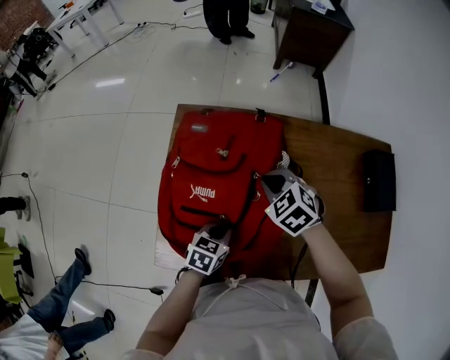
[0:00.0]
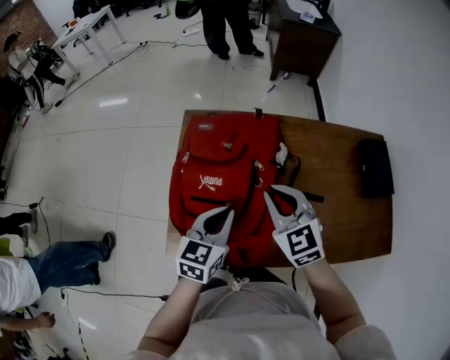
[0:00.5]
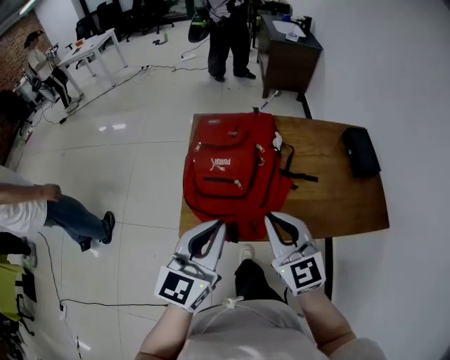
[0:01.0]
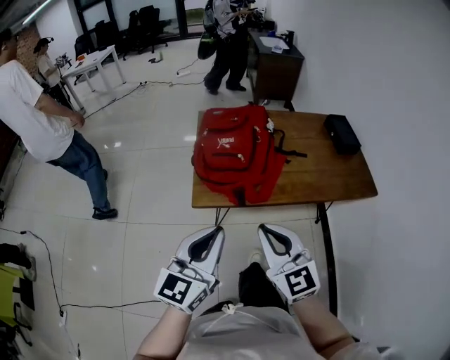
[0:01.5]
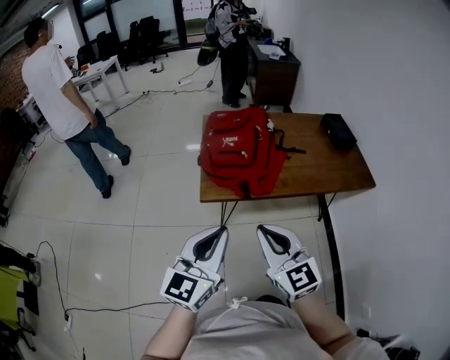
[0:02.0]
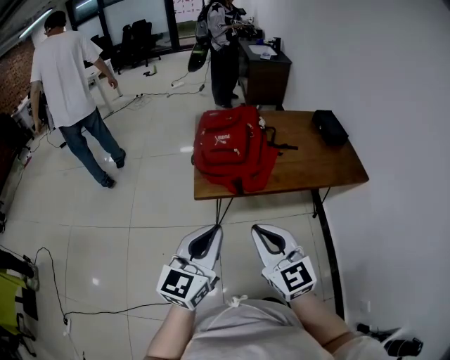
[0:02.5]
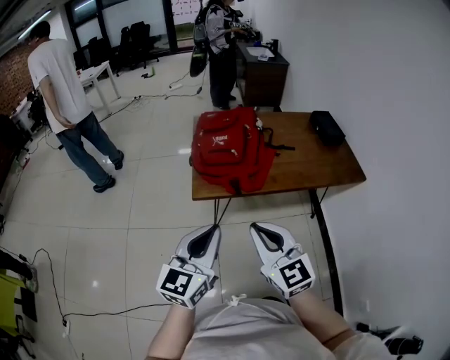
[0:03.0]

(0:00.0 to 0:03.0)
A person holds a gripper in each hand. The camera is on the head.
0:00.0 - 0:01.5: Both grippers travel together backward and upward, approximately 50 cm. The right gripper tilts its fingers approximately 50 degrees upward. The left gripper tips its fingers upward by some 50 degrees.
0:01.5 - 0:03.0: The grippers both shift backward by approximately 10 cm.

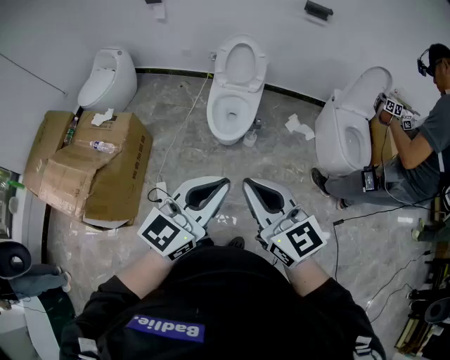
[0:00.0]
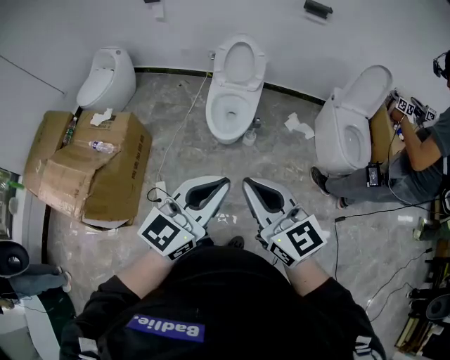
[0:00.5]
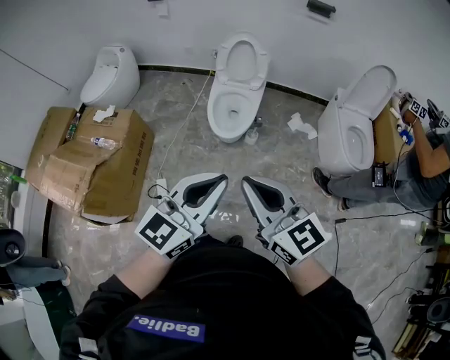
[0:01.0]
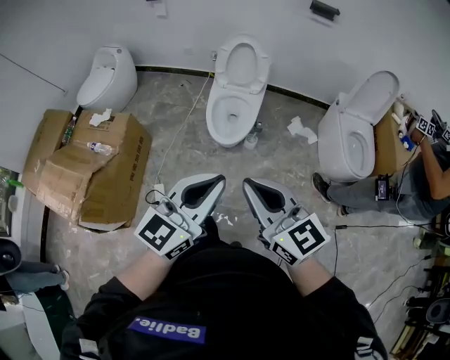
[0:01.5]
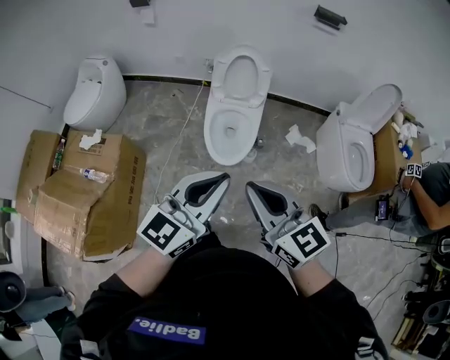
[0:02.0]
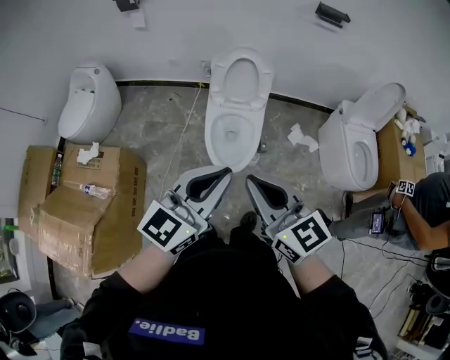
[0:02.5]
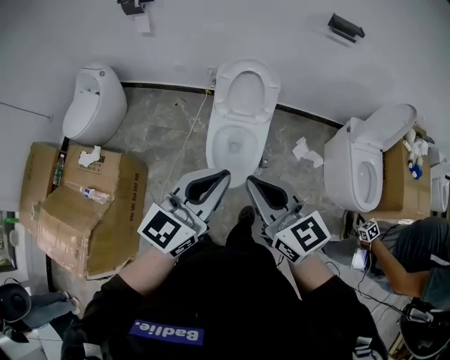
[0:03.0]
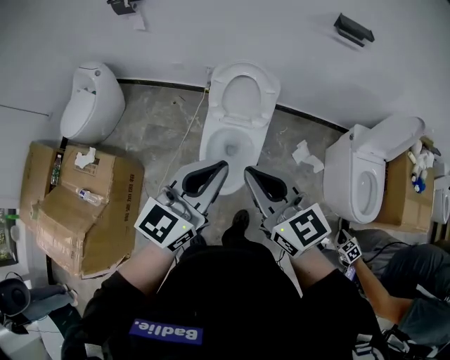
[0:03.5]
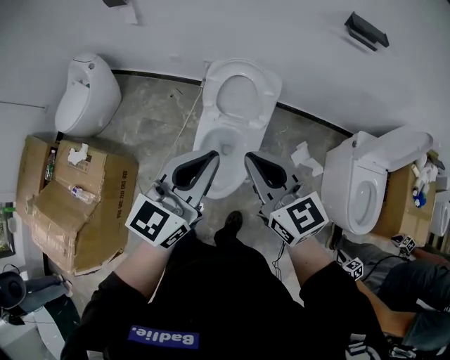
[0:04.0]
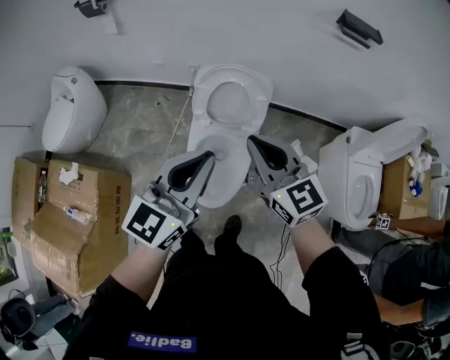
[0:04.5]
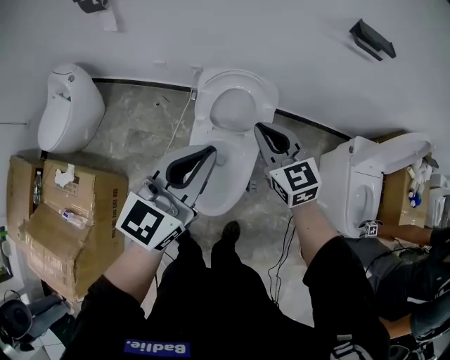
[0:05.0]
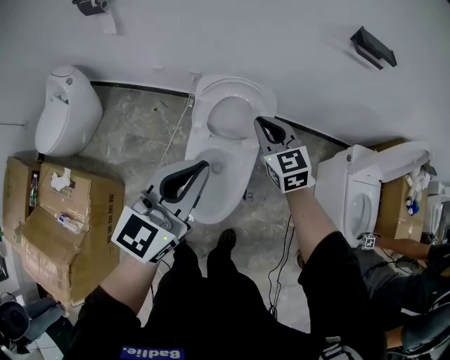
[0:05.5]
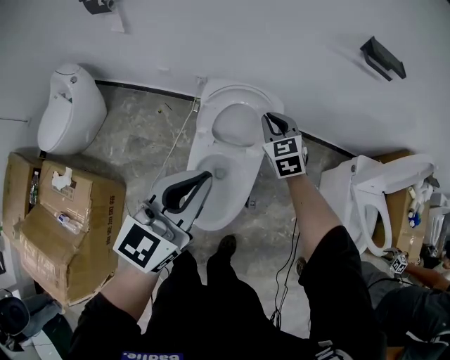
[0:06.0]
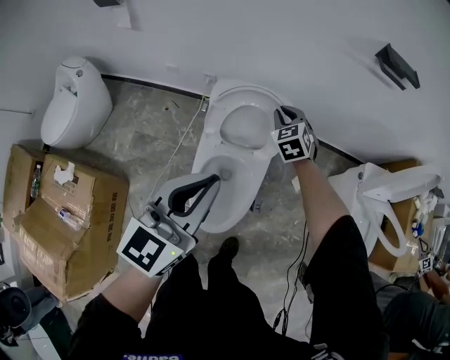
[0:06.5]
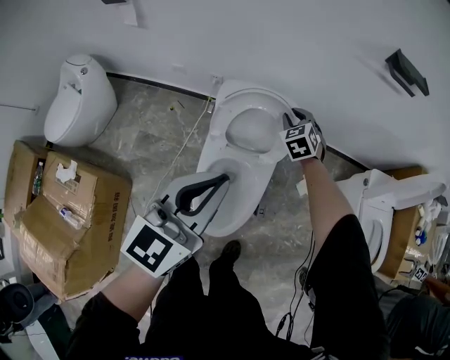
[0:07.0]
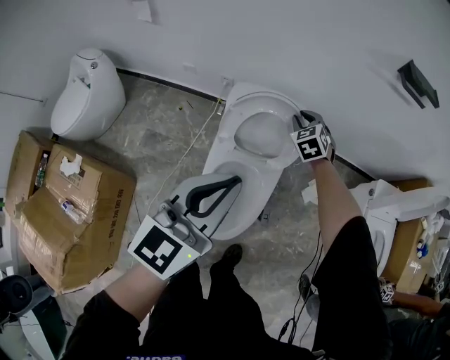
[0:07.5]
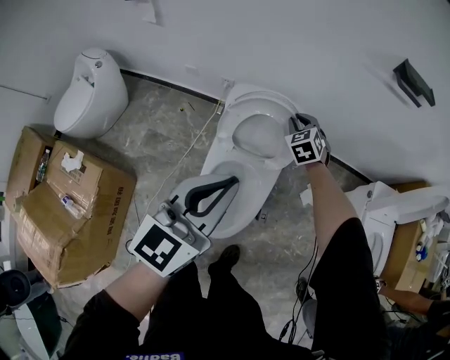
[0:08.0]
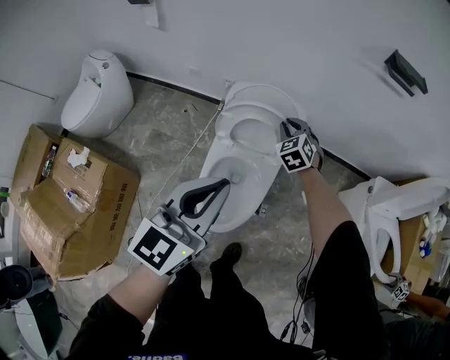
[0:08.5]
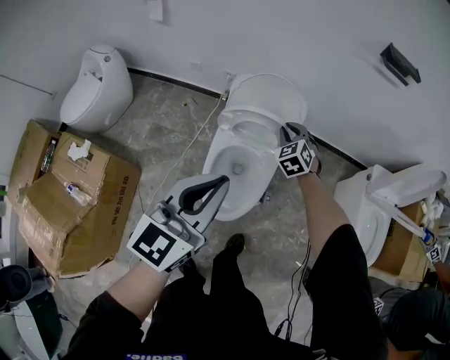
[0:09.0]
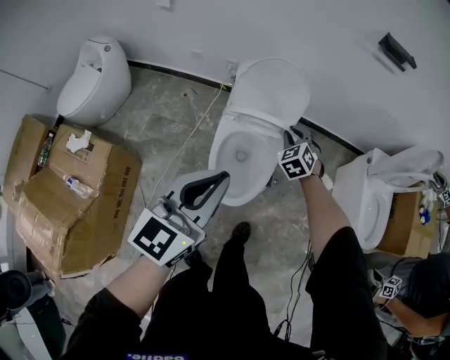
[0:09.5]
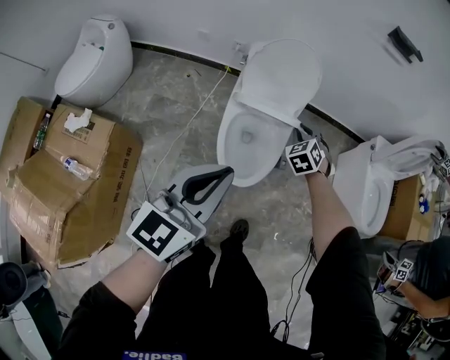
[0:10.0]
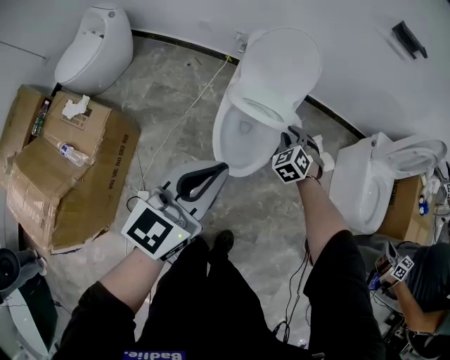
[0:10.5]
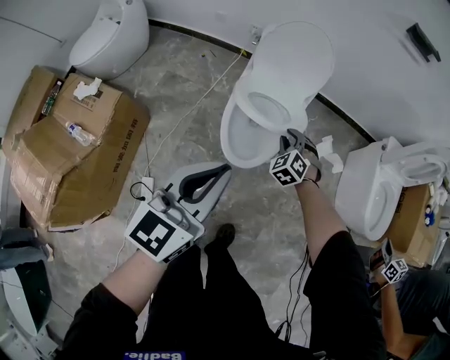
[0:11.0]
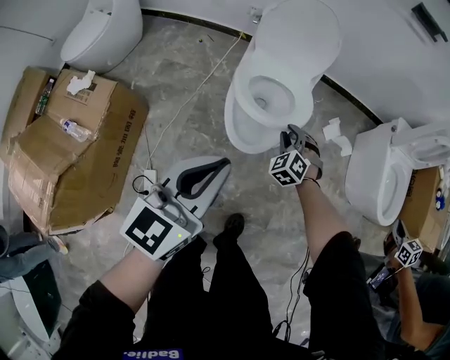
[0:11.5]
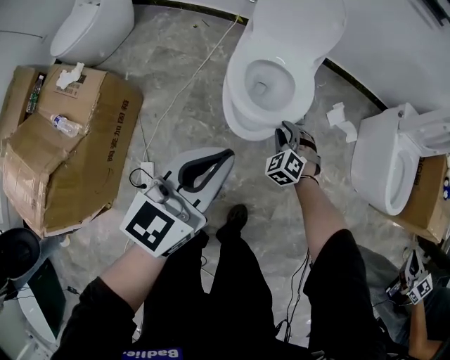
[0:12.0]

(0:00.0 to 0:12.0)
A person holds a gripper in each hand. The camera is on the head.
0:00.0 - 0:02.0: The grippers both shift forward by some 20 cm.
0:02.0 - 0:04.0: The two grippers go some 35 cm forward.
0:04.0 - 0:06.0: The left gripper heads forward, covering roughly 10 cm, while the right gripper moves forward and downward, approximately 35 cm, and turns by approximately 30 degrees.
0:06.0 - 0:08.0: The right gripper travels downward and forward by about 10 cm.
0:08.0 - 0:10.0: Both grippers travel together backward, roughly 25 cm.
0:10.0 - 0:12.0: The right gripper moves downward and backward, some 25 cm; the left gripper moves downward, backward and to the right, roughly 15 cm.

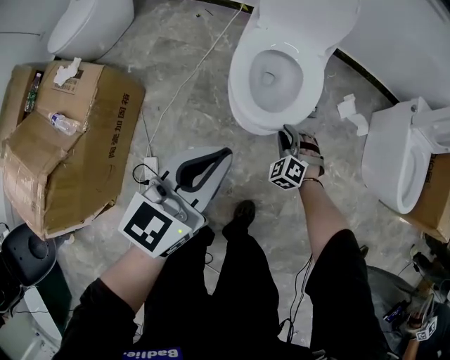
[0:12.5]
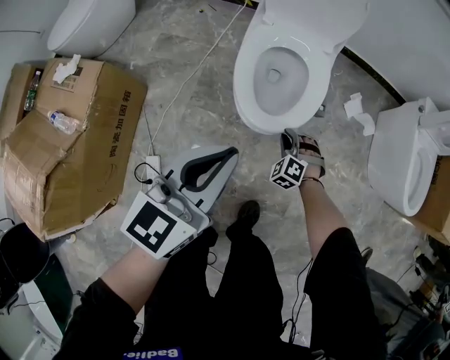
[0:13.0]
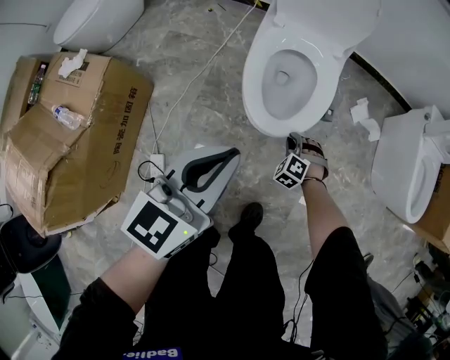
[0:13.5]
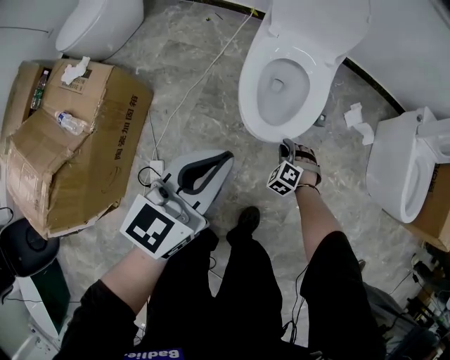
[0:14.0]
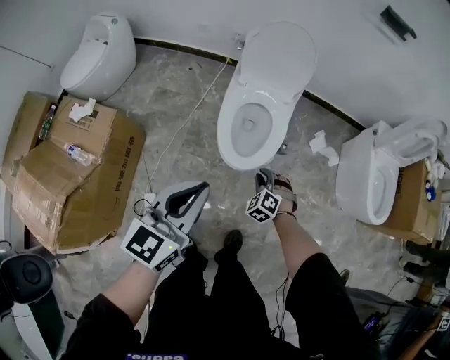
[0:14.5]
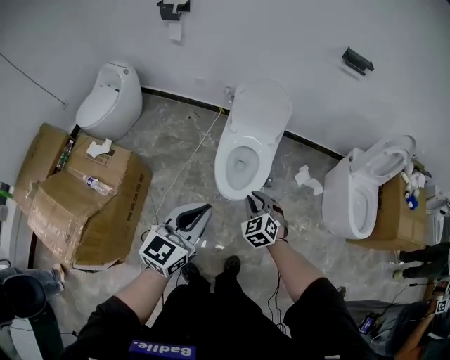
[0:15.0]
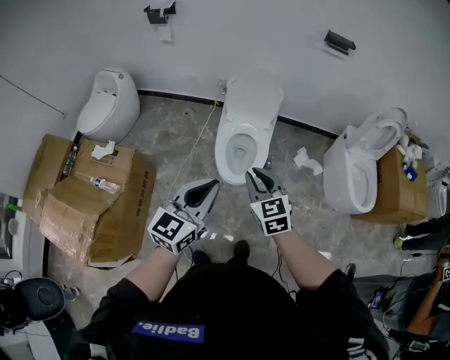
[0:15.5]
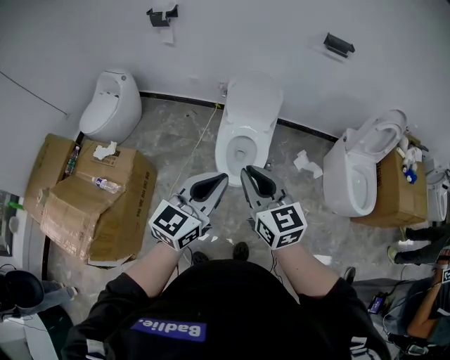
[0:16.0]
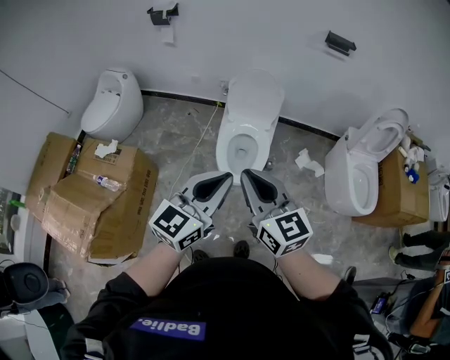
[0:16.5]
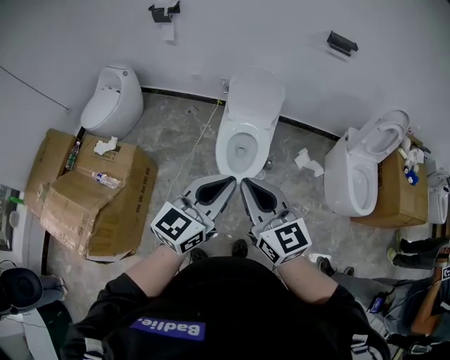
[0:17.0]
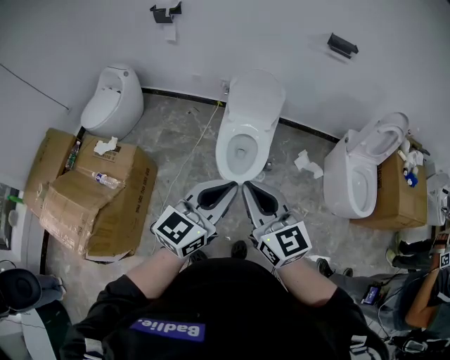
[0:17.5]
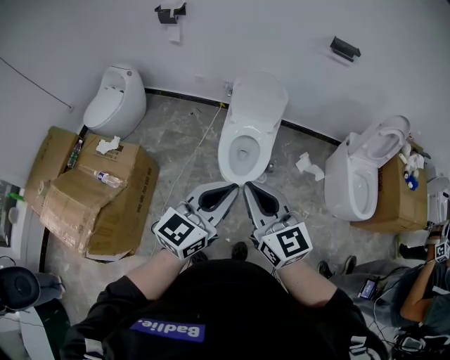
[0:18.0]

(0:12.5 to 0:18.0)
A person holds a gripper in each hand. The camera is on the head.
0:12.5 - 0:14.5: The left gripper moves upward, some 10 cm, while the right gripper heads upward and backward, covering some 10 cm.
0:14.5 - 0:16.0: The right gripper shifts roughly 50 cm upward, and tips its fingers upward by about 40 degrees. The left gripper travels upward by roughly 20 cm.
0:16.0 - 0:18.0: The right gripper heads backward, covering roughly 5 cm.

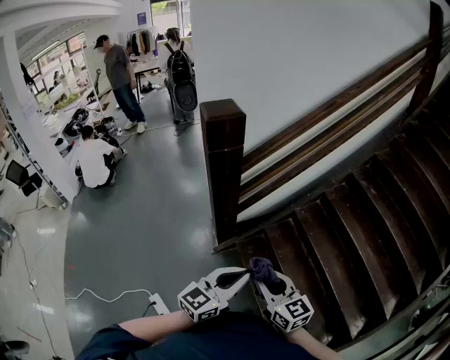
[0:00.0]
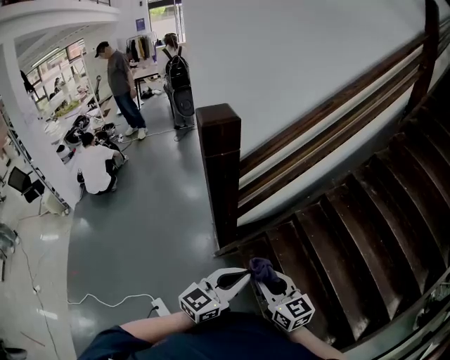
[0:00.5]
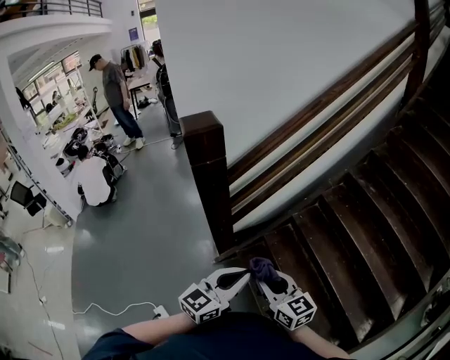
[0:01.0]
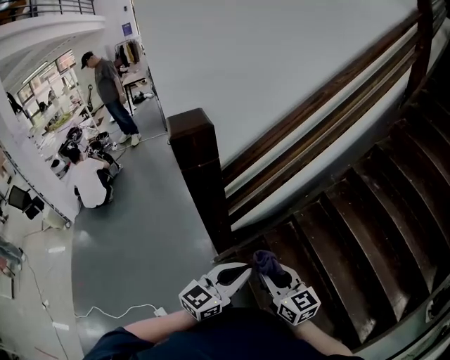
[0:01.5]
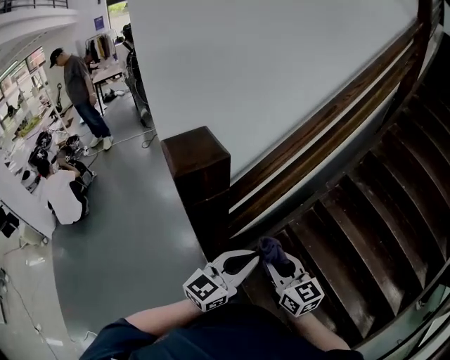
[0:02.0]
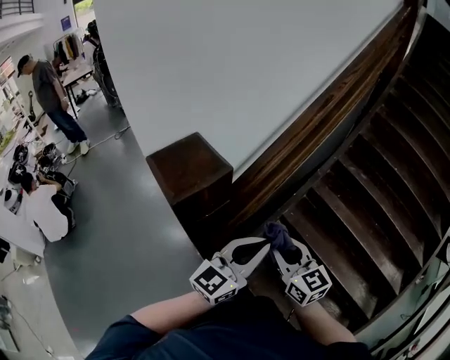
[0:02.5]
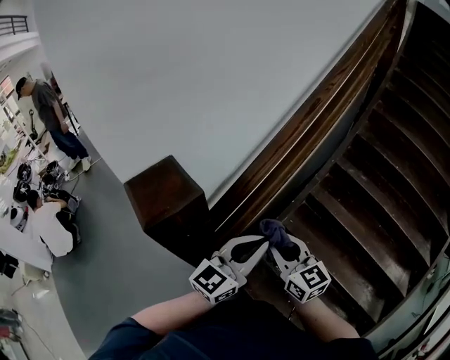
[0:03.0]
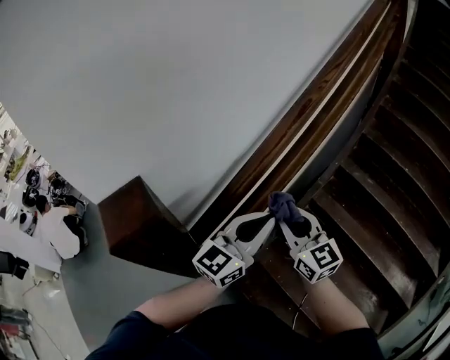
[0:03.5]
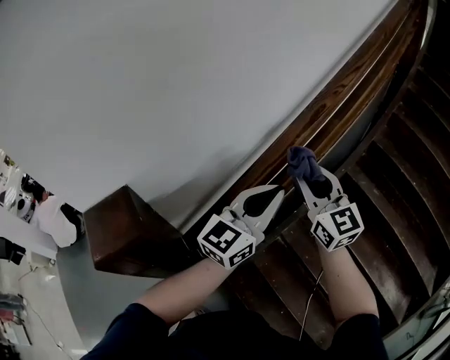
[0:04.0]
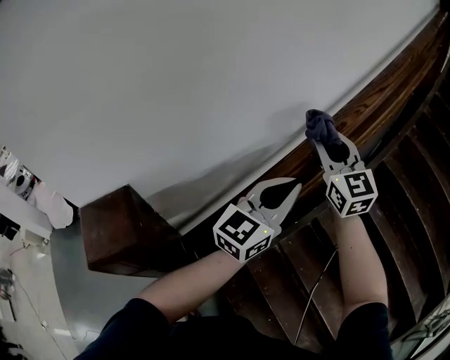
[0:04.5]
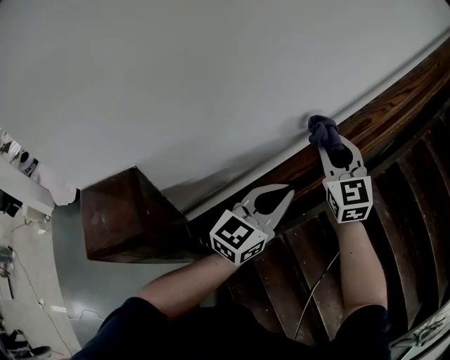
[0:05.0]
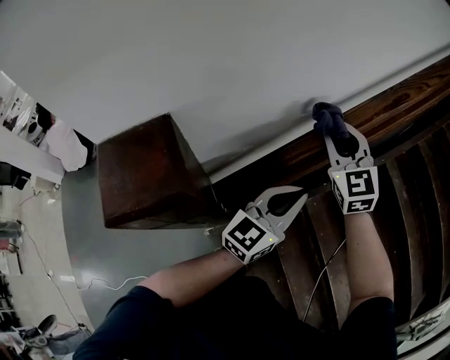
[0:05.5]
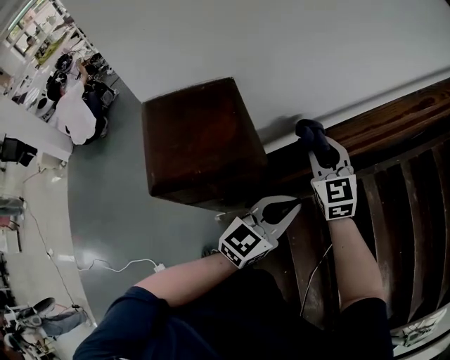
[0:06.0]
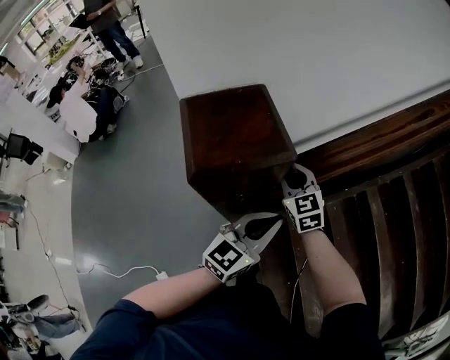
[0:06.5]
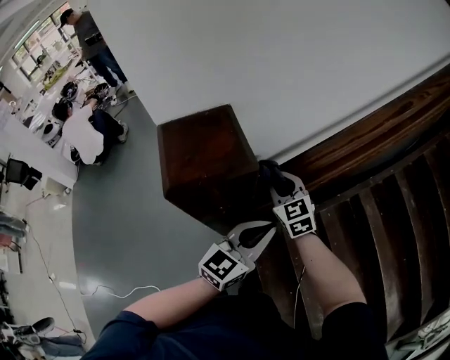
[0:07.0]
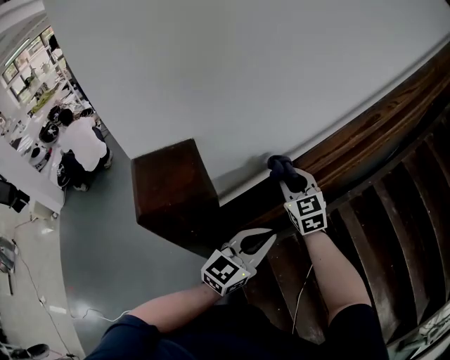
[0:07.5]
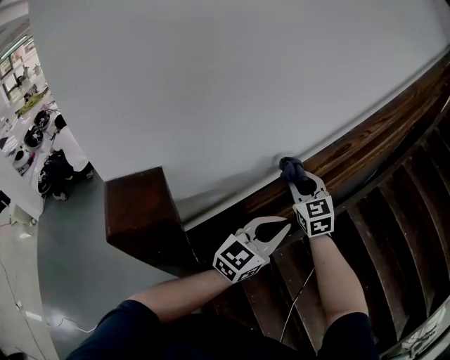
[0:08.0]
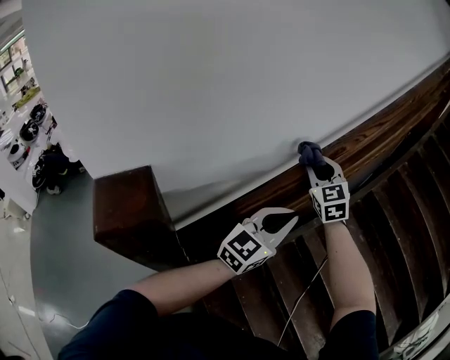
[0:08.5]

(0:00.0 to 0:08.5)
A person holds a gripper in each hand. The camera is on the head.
0:00.0 - 0:02.0: The grippers both shift forward by approximately 30 cm.
0:02.0 - 0:04.0: Both grippers move forward, roughly 35 cm. The right gripper changes its angle by roughly 20 degrees.
0:04.0 - 0:06.5: The right gripper shifts some 35 cm to the left and downward, and swivels approximately 30 degrees. The left gripper goes roughly 30 cm to the left, backward and downward, and rotates about 20 degrees.
0:06.5 - 0:08.5: The left gripper shifts roughly 30 cm to the right, forward and upward, and turns by about 20 degrees; the right gripper moves to the right, upward and forward, approximately 40 cm, and swivels about 30 degrees.
